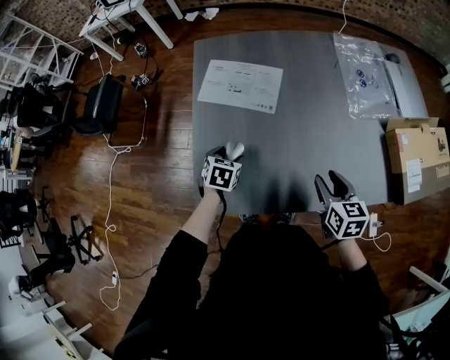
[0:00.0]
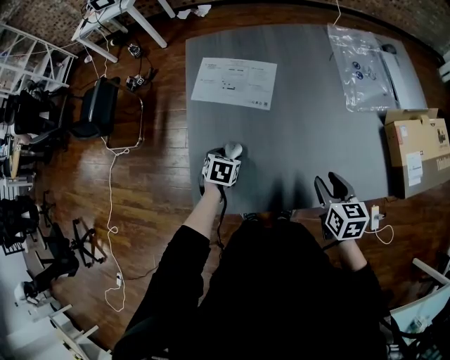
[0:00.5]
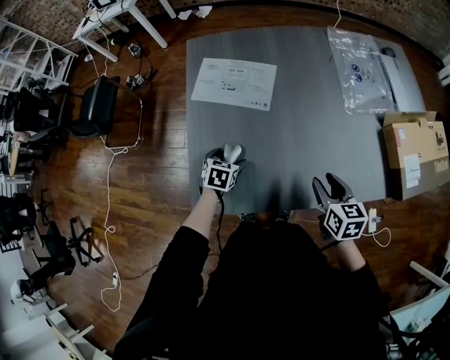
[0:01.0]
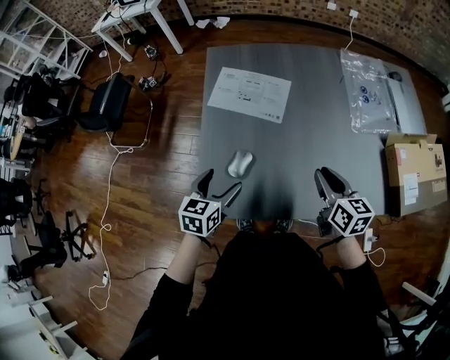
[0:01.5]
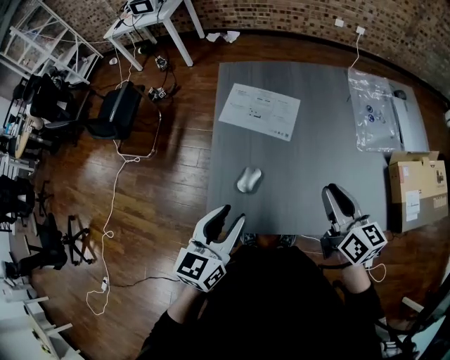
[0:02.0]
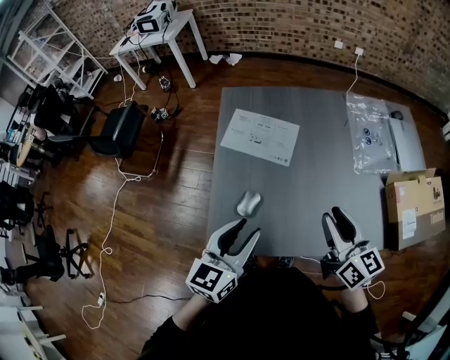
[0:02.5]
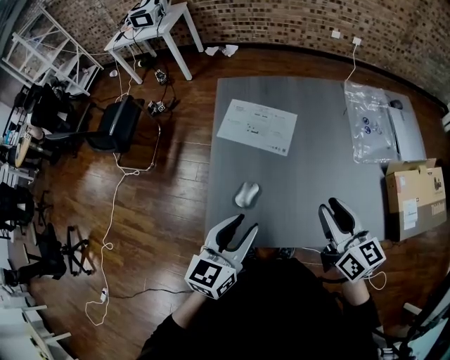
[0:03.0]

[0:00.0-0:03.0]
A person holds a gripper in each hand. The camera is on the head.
0:00.0 to 0:01.5: The right gripper ends up some 5 cm from where it was, and closes its fingers; the left gripper travels upward and backward by approximately 15 cm, and turns by roughly 20 degrees.
0:01.5 to 0:03.0: The two grippers go about 15 cm upward. The left gripper closes.

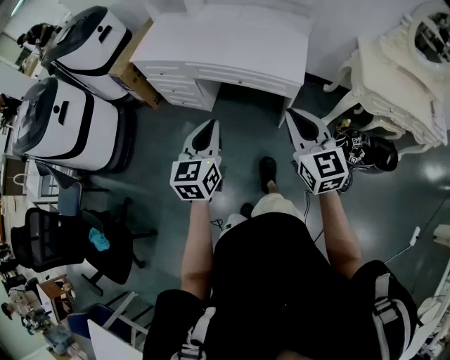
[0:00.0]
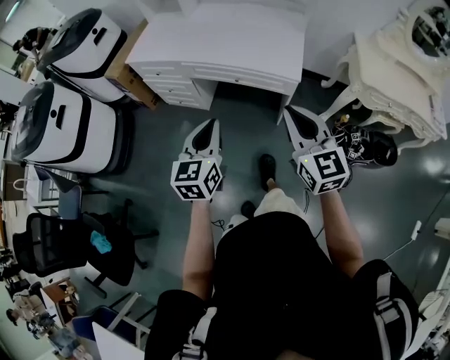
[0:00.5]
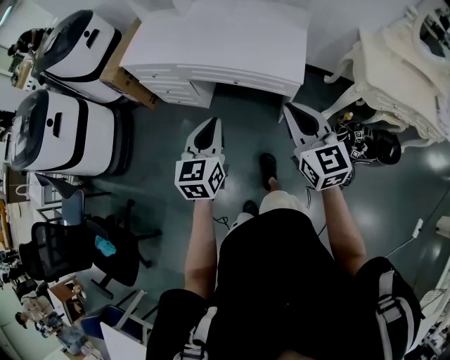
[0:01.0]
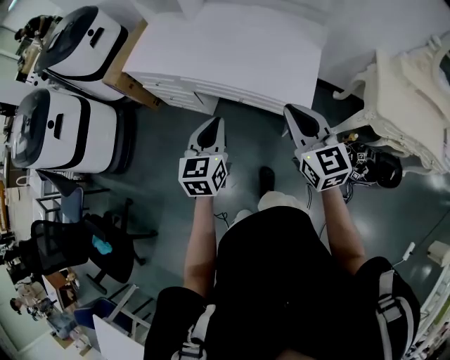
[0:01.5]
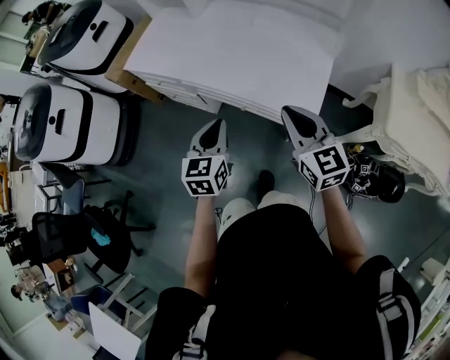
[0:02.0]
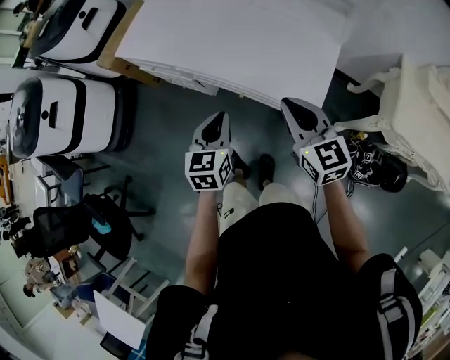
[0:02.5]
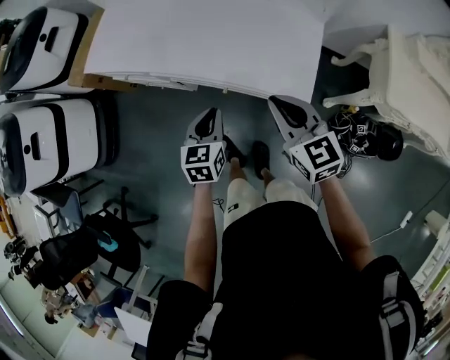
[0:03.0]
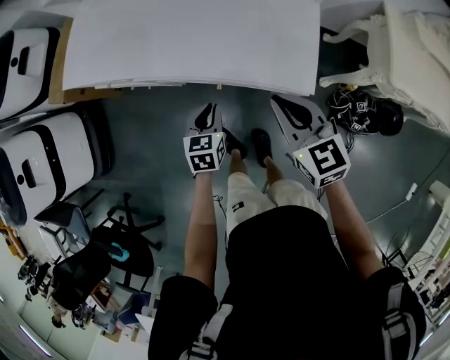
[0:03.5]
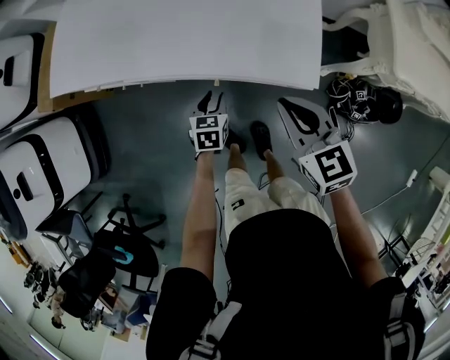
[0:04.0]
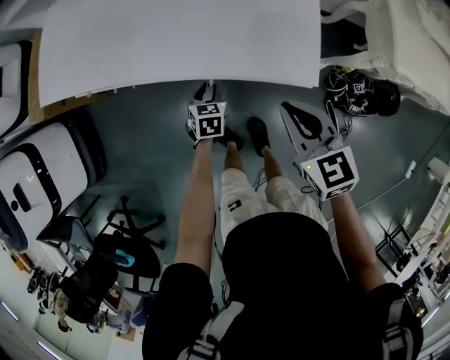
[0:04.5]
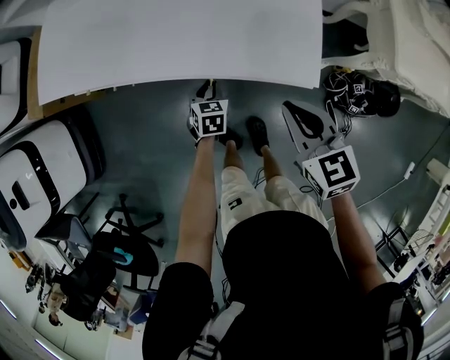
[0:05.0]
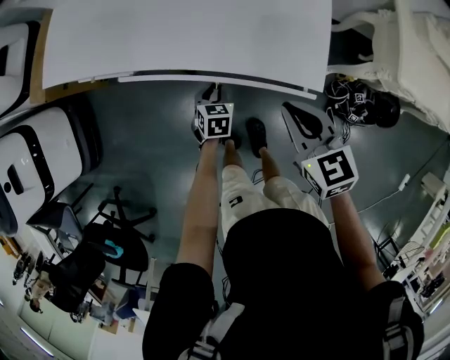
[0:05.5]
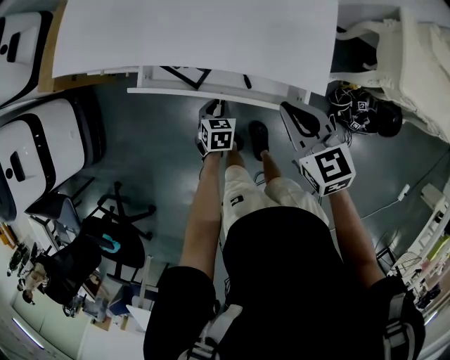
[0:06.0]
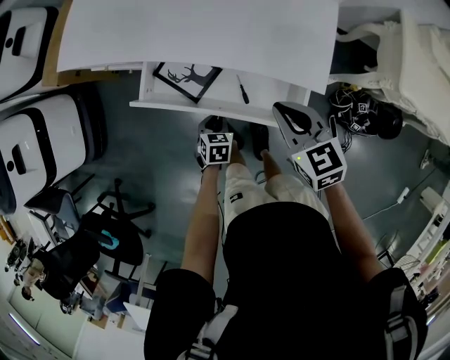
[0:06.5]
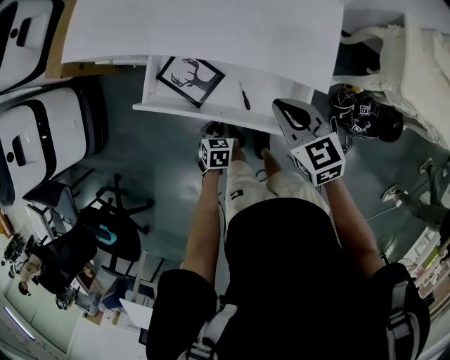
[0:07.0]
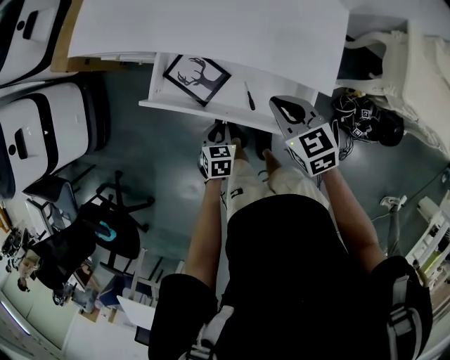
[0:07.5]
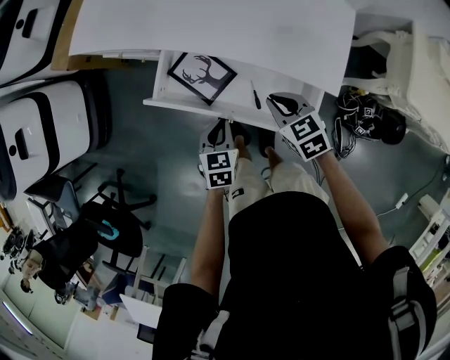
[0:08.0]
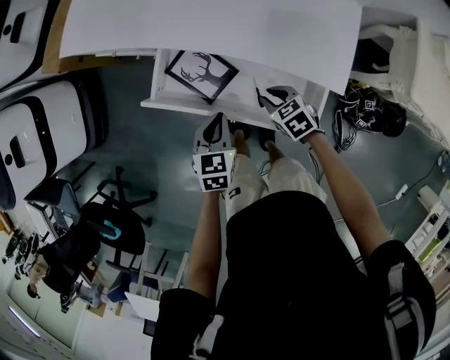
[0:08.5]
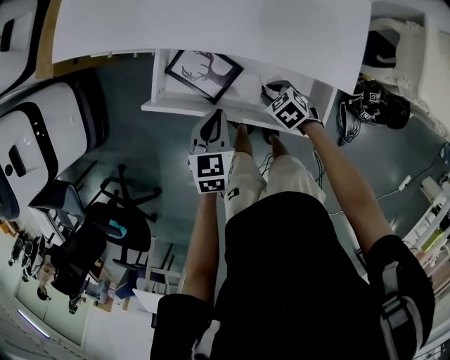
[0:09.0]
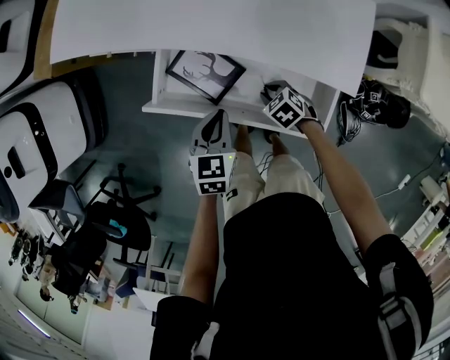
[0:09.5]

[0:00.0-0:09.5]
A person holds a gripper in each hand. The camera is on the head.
0:00.0 to 0:02.0: The grippers both shift forward by approximately 30 cm.
0:02.0 to 0:04.0: The right gripper shifts some 15 cm downward, and turns by about 20 degrees. Meanwhile the left gripper goes approximately 30 cm downward, swivels approximately 30 degrees, and opens its fingers.
0:04.0 to 0:05.5: The left gripper heads downward, covering some 5 cm.
0:05.5 to 0:07.5: The right gripper is displaced to the left by some 5 cm. Meanwhile the left gripper goes approximately 15 cm backward and to the left.
0:07.5 to 0:09.5: The right gripper travels downward by some 25 cm, swivels approximately 30 degrees, and opens. The left gripper heads forward and upward, covering some 15 cm.

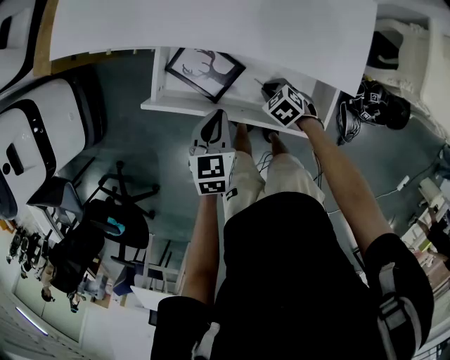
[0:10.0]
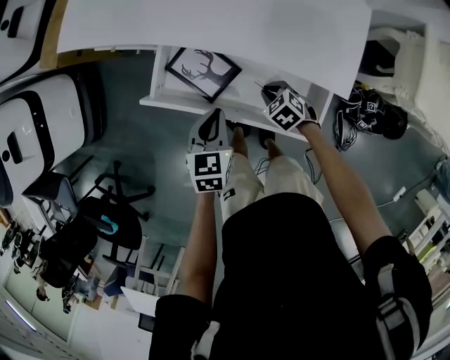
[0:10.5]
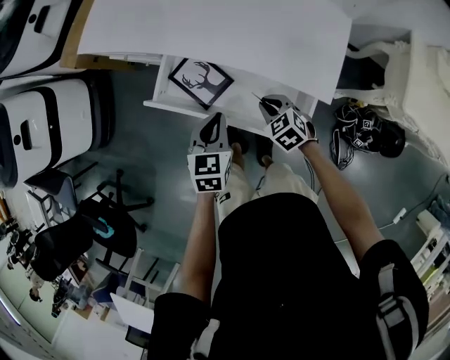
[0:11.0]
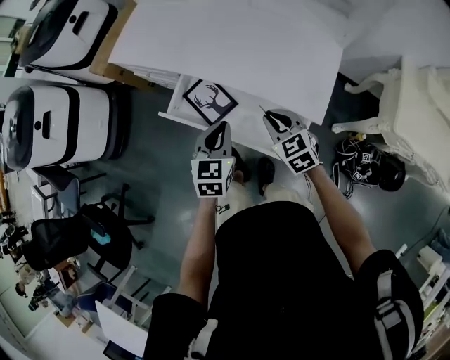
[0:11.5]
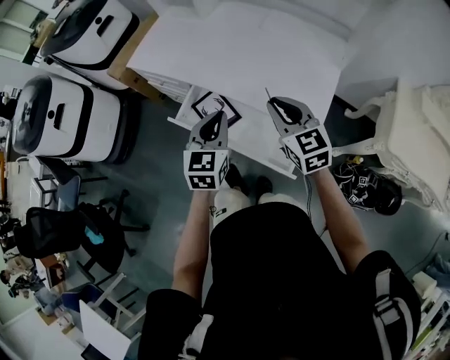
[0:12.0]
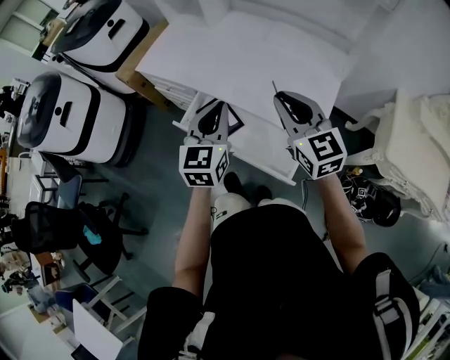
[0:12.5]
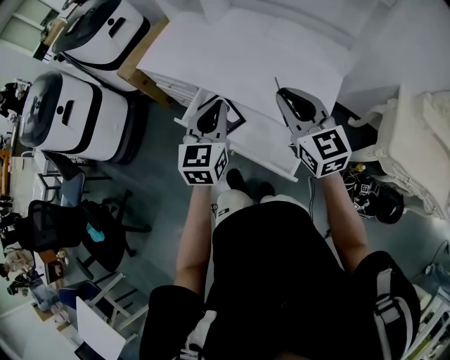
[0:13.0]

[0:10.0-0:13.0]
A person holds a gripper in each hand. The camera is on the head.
0:10.0 to 0:11.5: The right gripper shifts approximately 30 cm upward, and tilts its fingers some 30 degrees upward. Meanwhile the left gripper heads upward and to the right, covering approximately 20 cm.
0:11.5 to 0:13.0: The two grippers go roughly 20 cm upward. The right gripper swivels some 30 degrees.

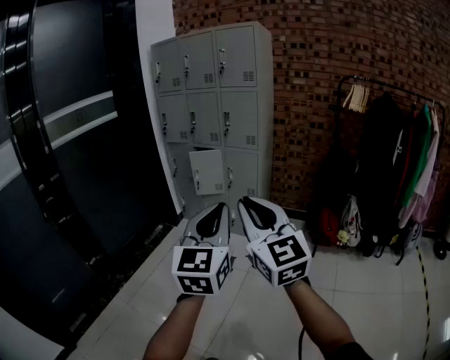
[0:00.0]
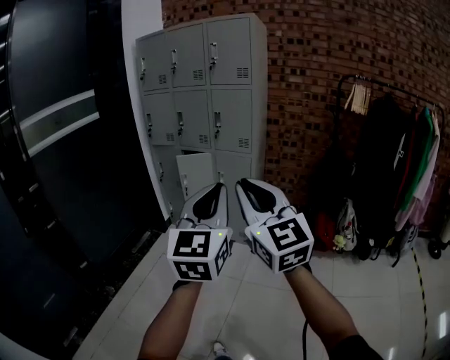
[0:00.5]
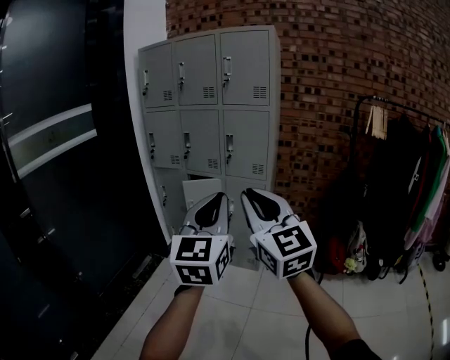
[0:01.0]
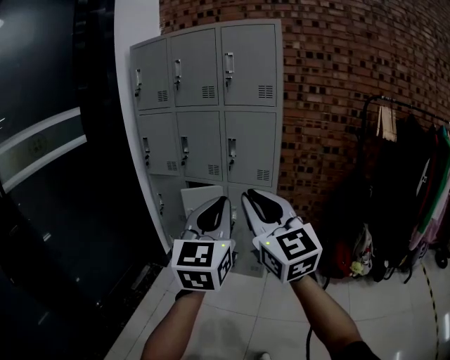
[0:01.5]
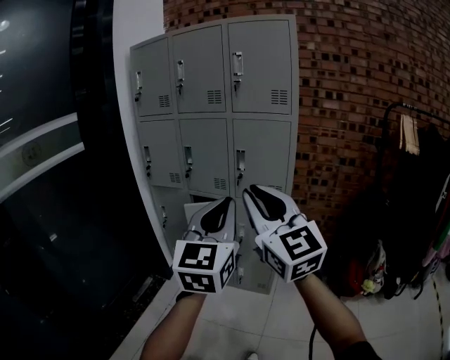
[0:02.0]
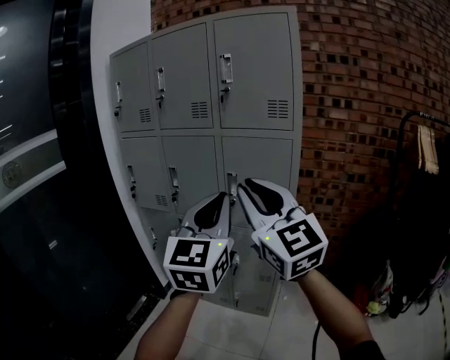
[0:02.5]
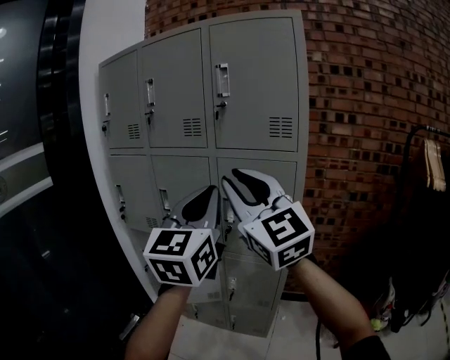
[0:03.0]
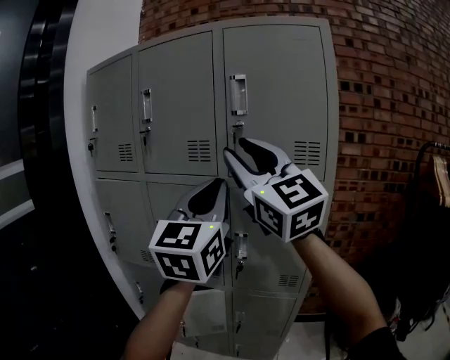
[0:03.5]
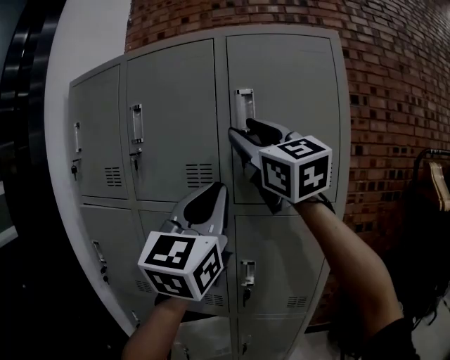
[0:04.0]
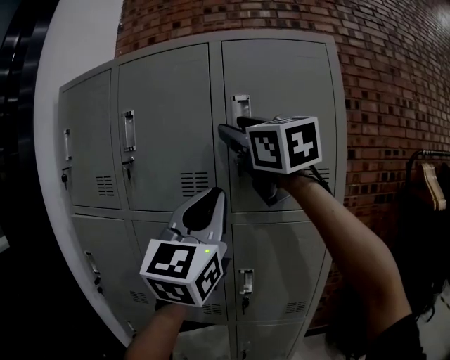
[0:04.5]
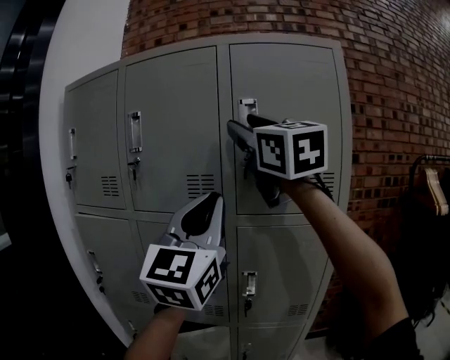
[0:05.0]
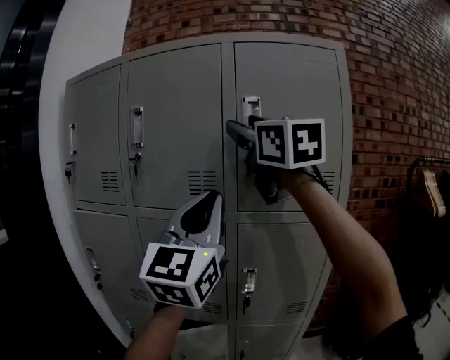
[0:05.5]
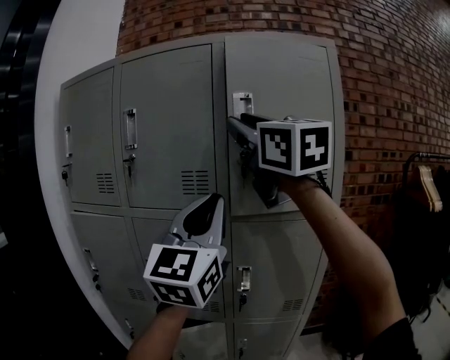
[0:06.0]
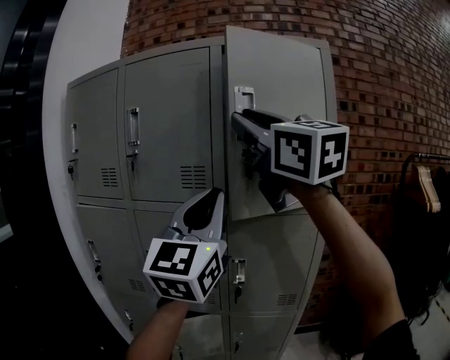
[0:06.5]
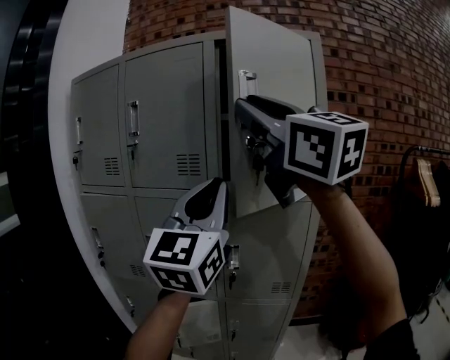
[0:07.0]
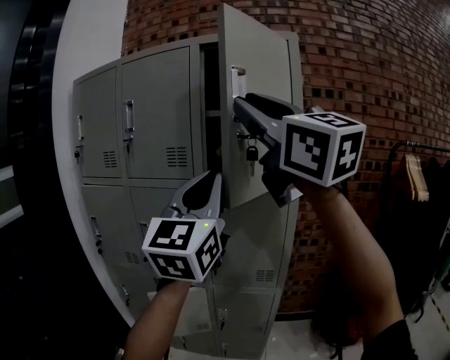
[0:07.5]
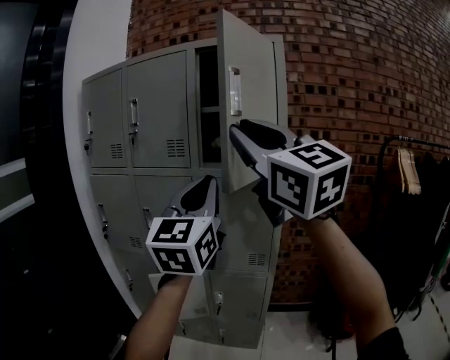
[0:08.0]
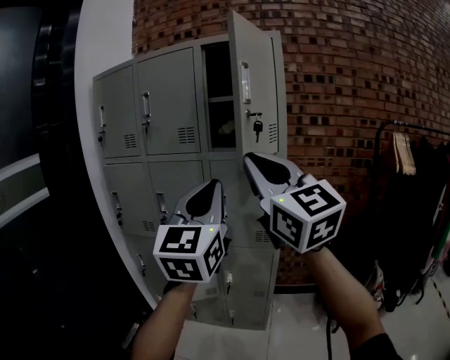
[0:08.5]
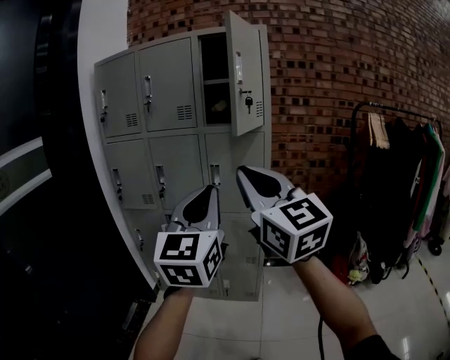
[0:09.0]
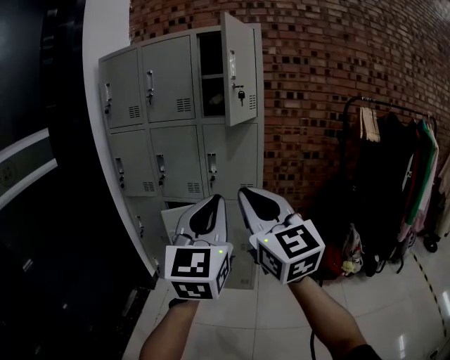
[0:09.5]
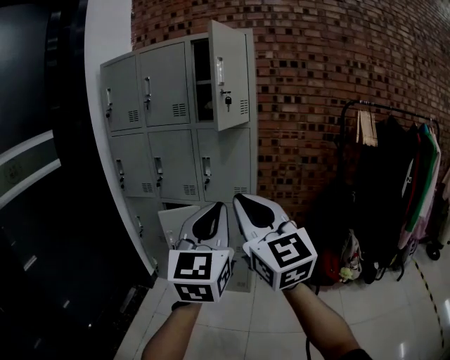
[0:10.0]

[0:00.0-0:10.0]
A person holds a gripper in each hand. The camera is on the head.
0:00.0 to 0:02.0: The pair of grippers is taken forward, about 50 cm.
0:02.0 to 0:04.0: Both grippers are carried forward, roughly 40 cm. The two grippers go approximately 25 cm upward. The left gripper swivels approximately 20 degrees. The right gripper opens up.
0:04.0 to 0:06.0: The grippers stay close to where they were, moving slightly.
0:06.0 to 0:08.0: The right gripper shifts roughly 25 cm backward. The left gripper shifts about 20 cm backward and to the right.
0:08.0 to 0:10.0: The right gripper shifts approximately 35 cm backward and downward, while the left gripper travels backward by some 35 cm.
